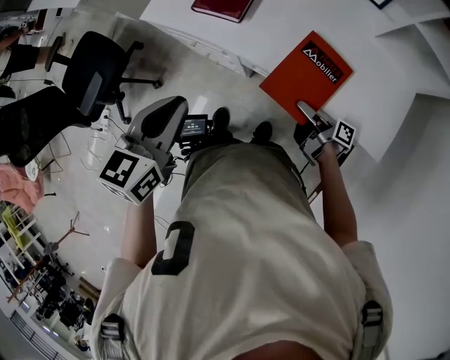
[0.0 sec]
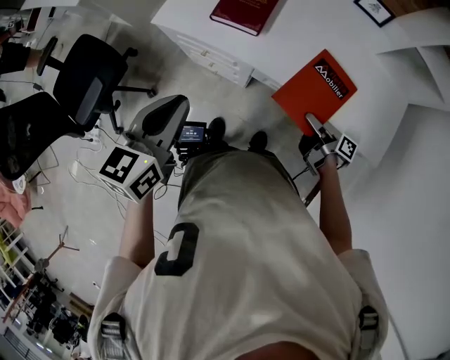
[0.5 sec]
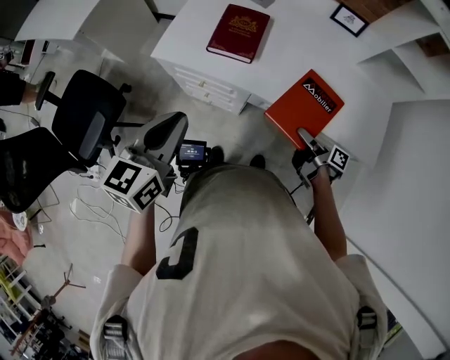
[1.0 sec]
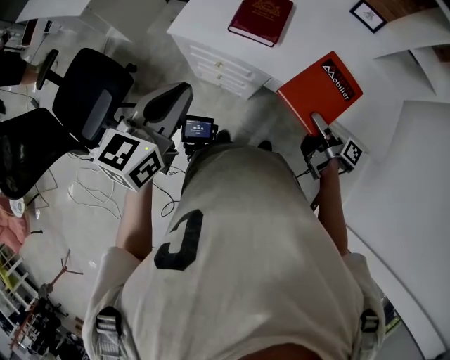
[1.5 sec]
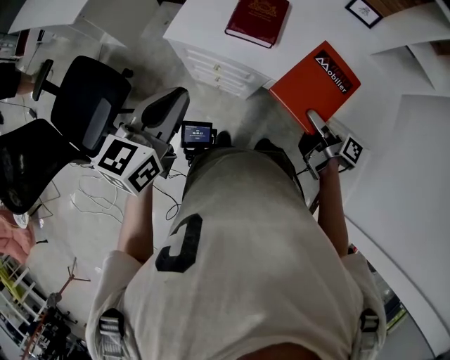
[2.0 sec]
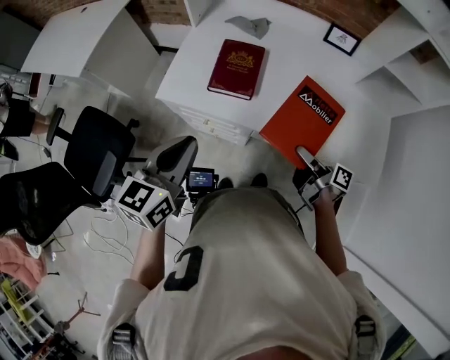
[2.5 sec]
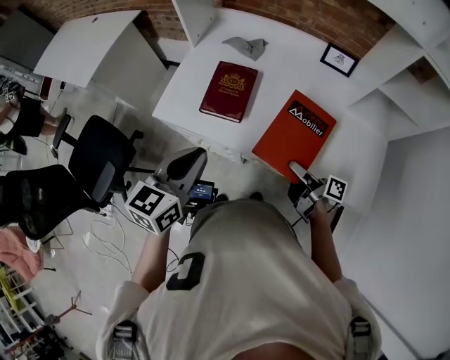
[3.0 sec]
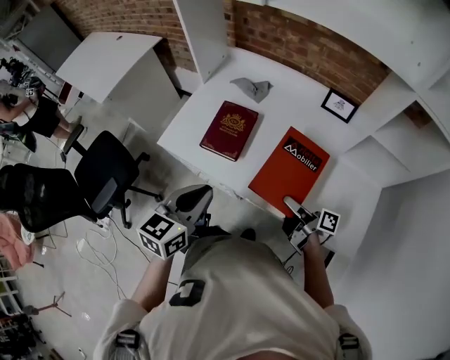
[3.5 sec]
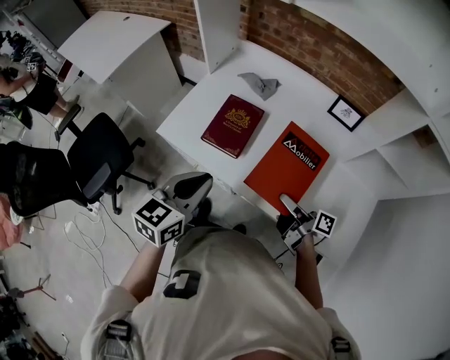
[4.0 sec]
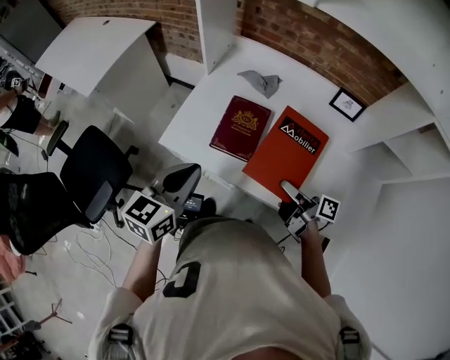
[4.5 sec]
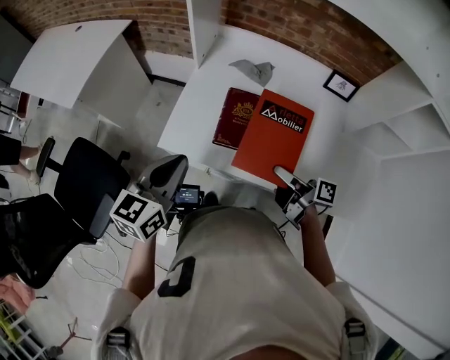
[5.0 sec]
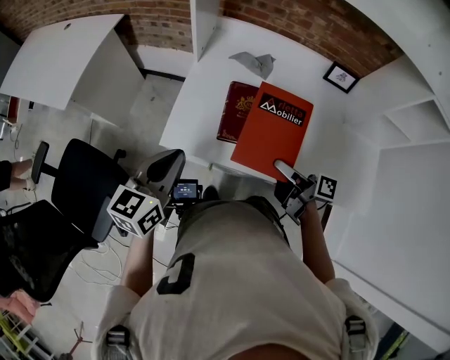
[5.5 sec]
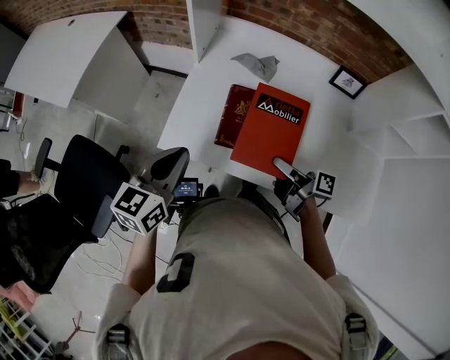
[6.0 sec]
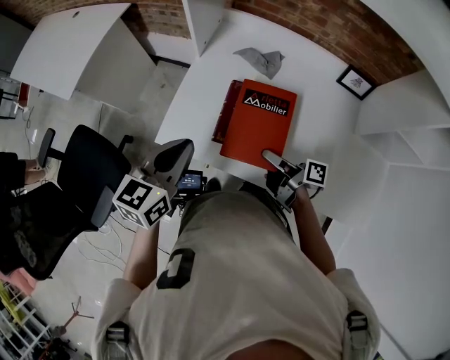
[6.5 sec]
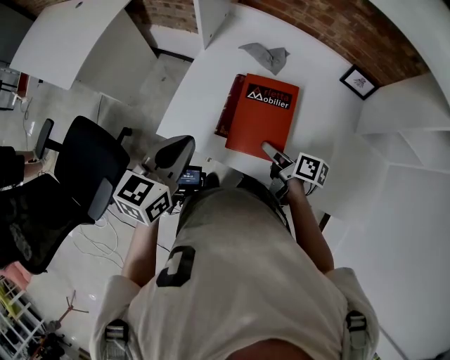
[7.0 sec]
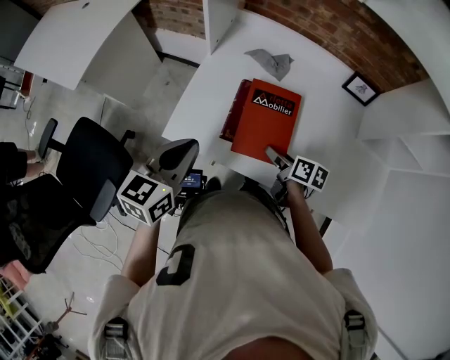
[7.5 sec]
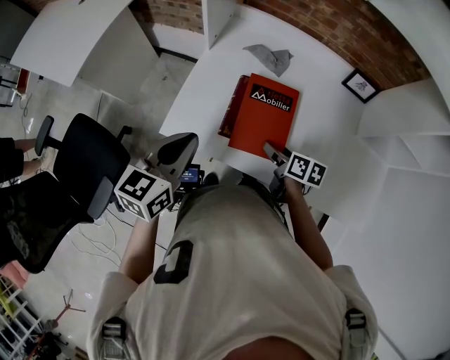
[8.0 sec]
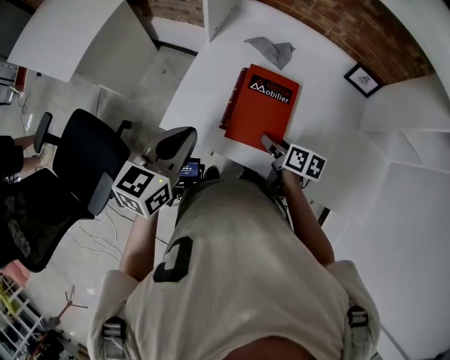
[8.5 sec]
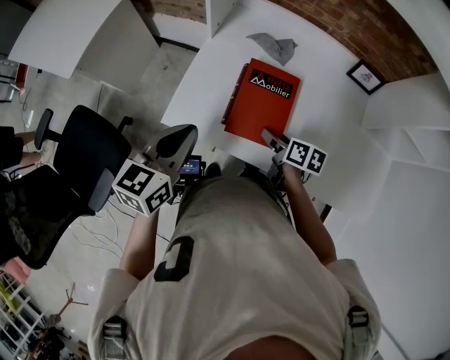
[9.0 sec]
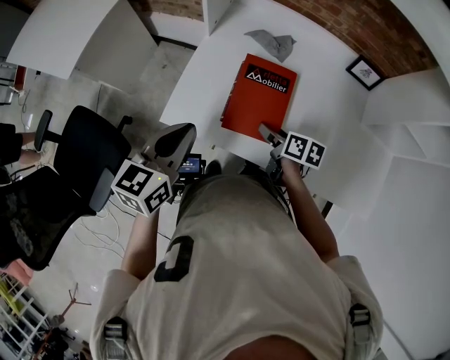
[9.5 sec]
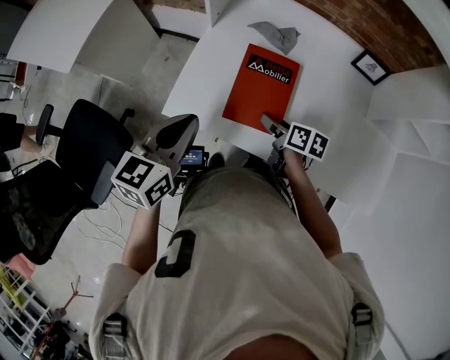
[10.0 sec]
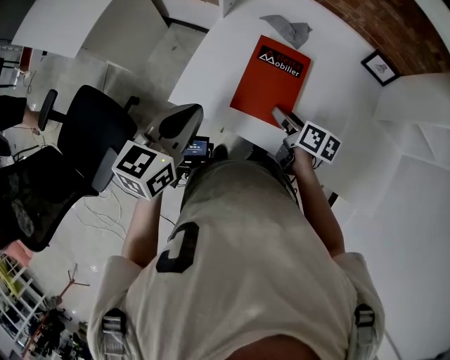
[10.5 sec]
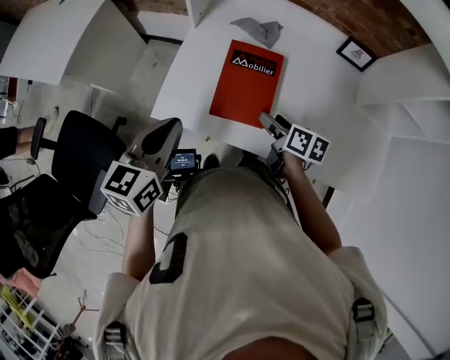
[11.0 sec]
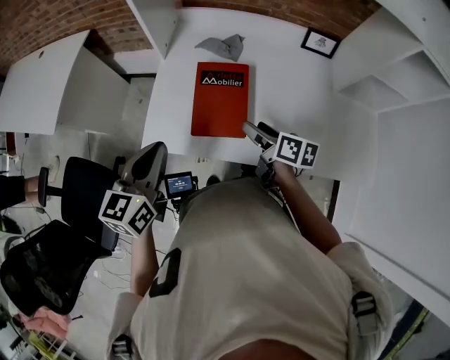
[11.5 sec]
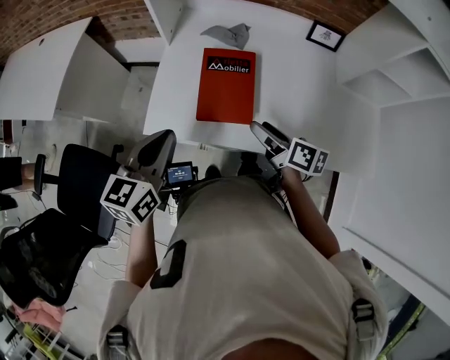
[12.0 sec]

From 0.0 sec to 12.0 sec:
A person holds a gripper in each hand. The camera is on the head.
From 0.0 sec to 2.0 sec: The left gripper moves to the left, approximately 15 cm; the right gripper travels upward and to the left by approximately 10 cm.
From 2.0 sec to 4.0 sec: The left gripper is displaced to the right by some 20 cm. The right gripper shifts about 15 cm forward and to the right.
From 4.0 sec to 6.0 sec: Both grippers move to the left and forward, some 20 cm.
From 6.0 sec to 8.0 sec: The right gripper goes about 5 cm downward, tips its fingers downward by some 30 degrees, and opens up.
From 8.0 sec to 10.0 sec: The grippers make only small movements.
From 10.0 sec to 12.0 sec: The right gripper heads upward and backward, covering about 10 cm, and turns by roughly 20 degrees.

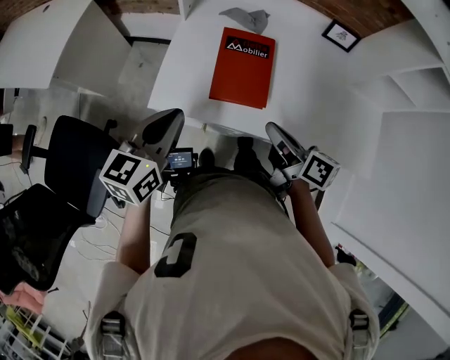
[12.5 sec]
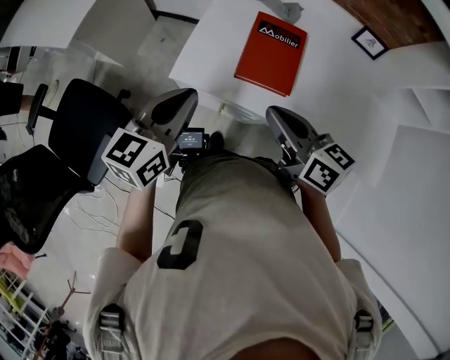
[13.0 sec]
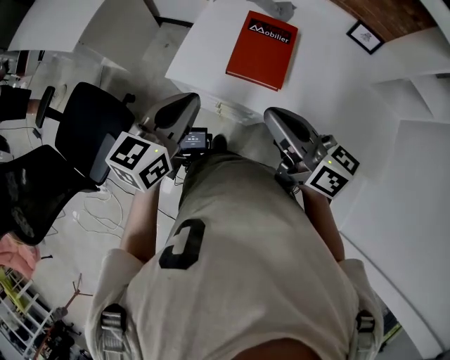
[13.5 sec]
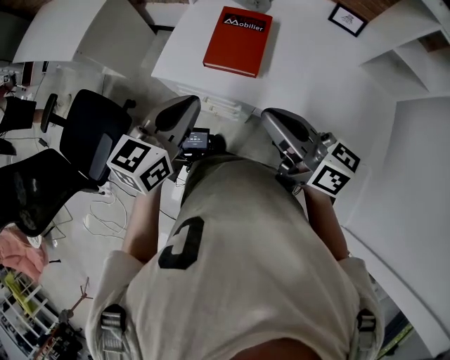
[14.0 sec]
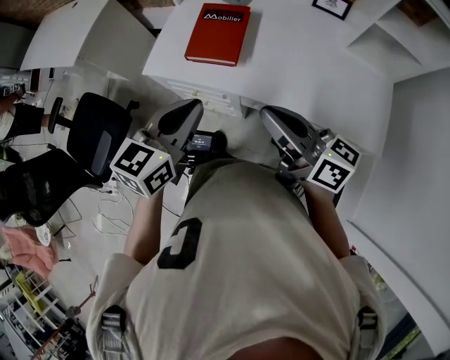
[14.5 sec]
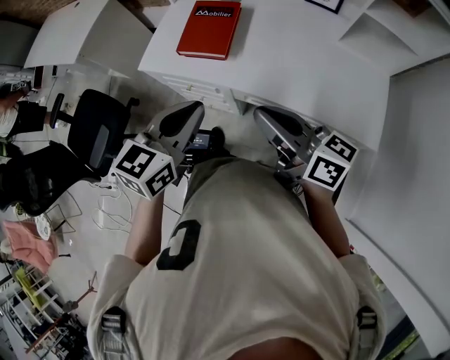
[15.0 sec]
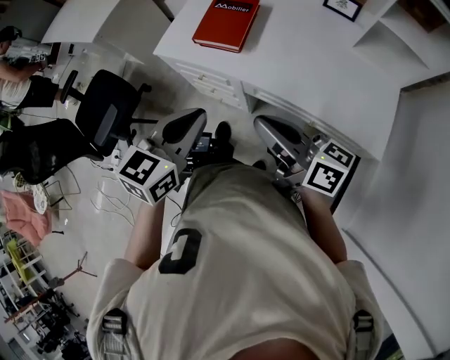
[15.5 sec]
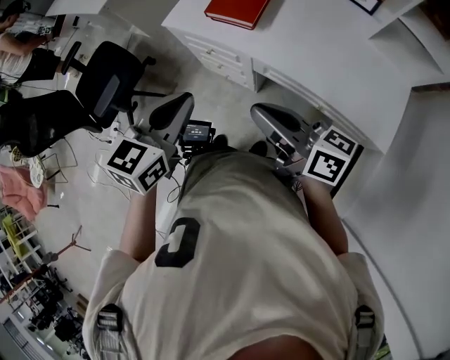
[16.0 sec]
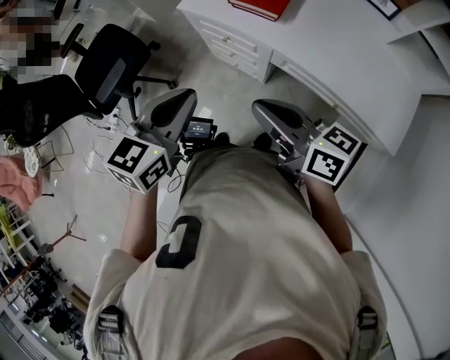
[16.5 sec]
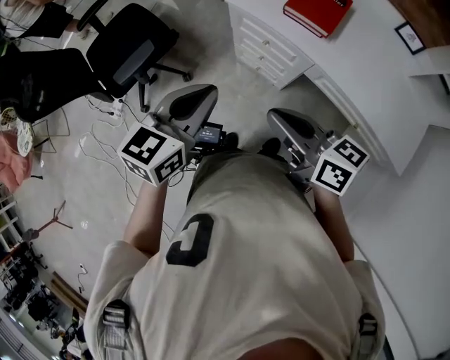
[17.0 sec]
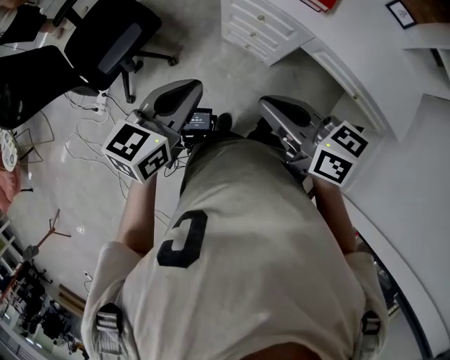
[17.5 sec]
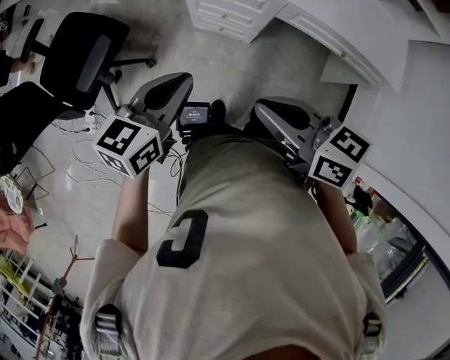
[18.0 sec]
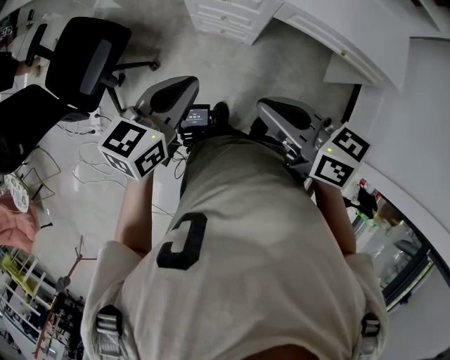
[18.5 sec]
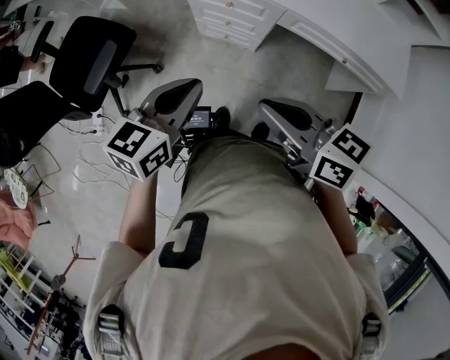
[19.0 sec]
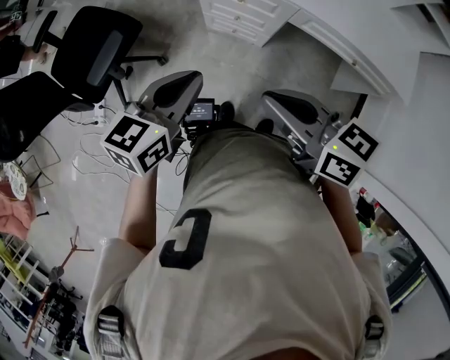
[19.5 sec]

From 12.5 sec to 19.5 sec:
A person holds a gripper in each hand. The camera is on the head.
From 12.5 sec to 14.5 sec: The right gripper shifts about 20 cm backward, upward and to the right, and turns by some 30 degrees. The left gripper travels backward and to the right by about 25 cm.
From 14.5 sec to 16.0 sec: The two grippers go about 10 cm backward.
From 16.0 sec to 17.5 sec: The grippers both shift to the left by some 25 cm. The right gripper rotates roughly 20 degrees.

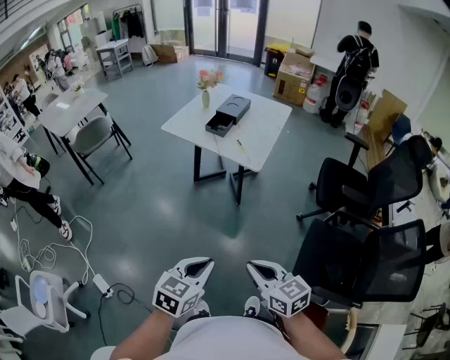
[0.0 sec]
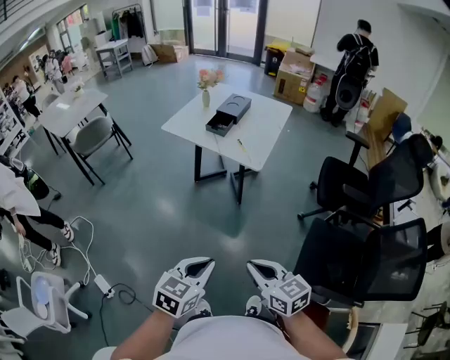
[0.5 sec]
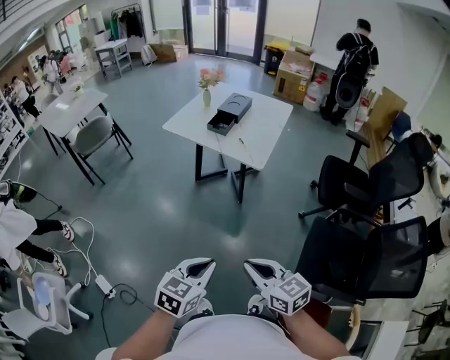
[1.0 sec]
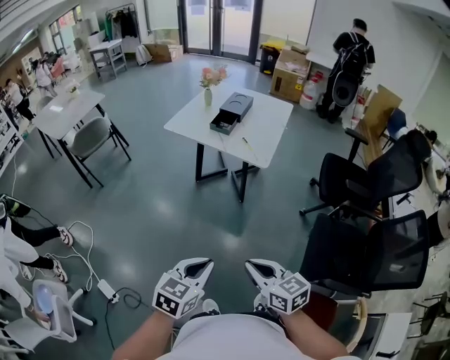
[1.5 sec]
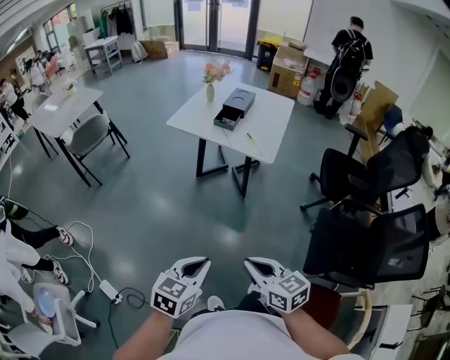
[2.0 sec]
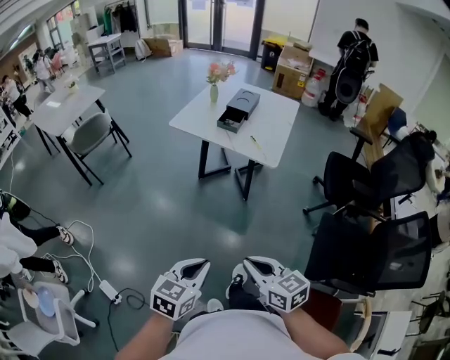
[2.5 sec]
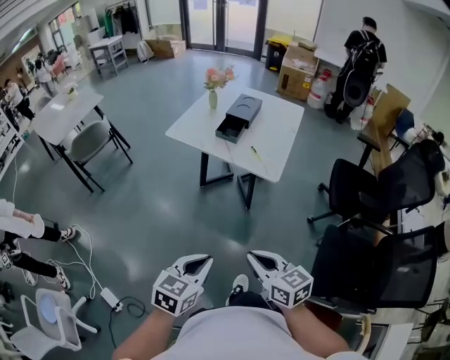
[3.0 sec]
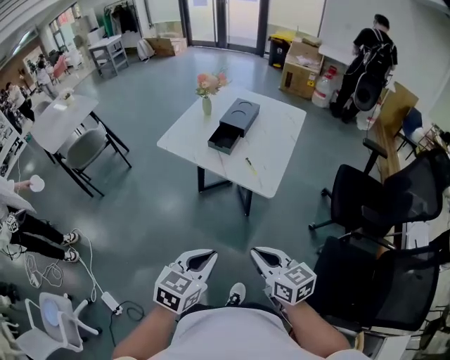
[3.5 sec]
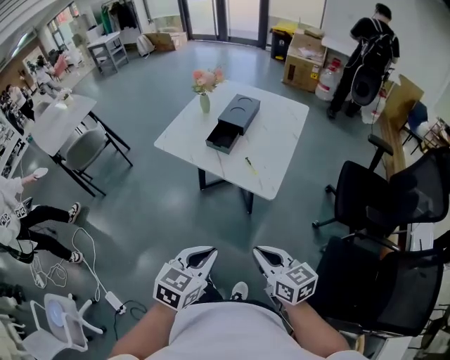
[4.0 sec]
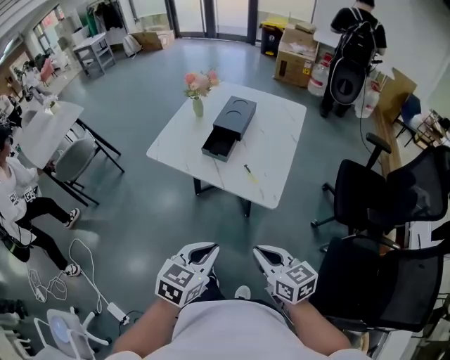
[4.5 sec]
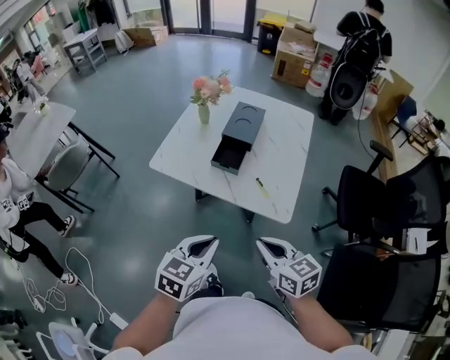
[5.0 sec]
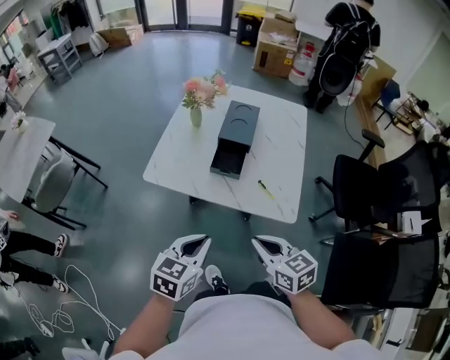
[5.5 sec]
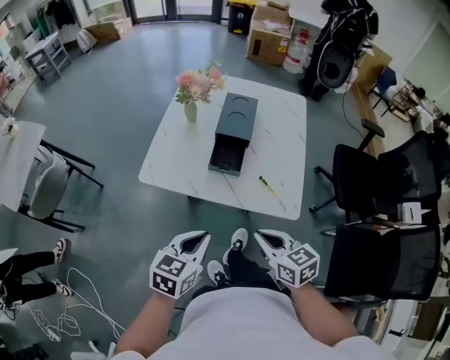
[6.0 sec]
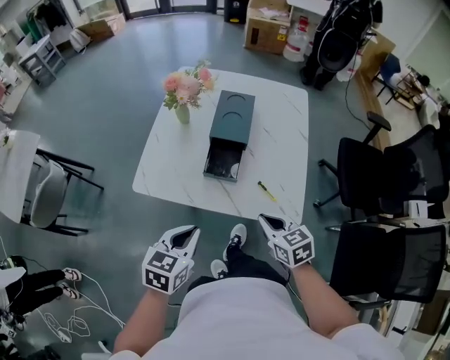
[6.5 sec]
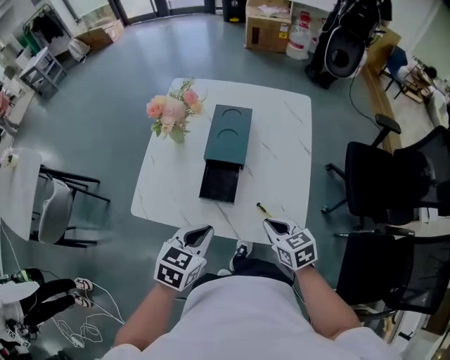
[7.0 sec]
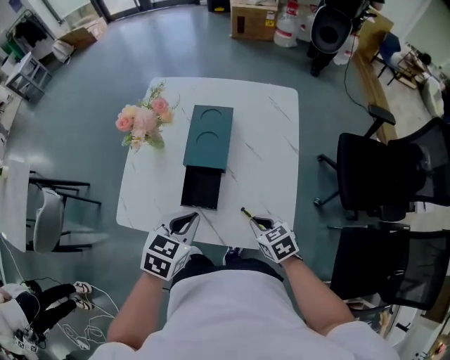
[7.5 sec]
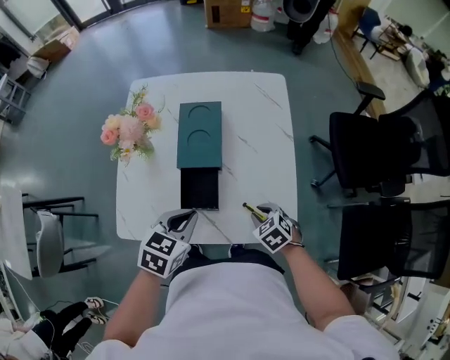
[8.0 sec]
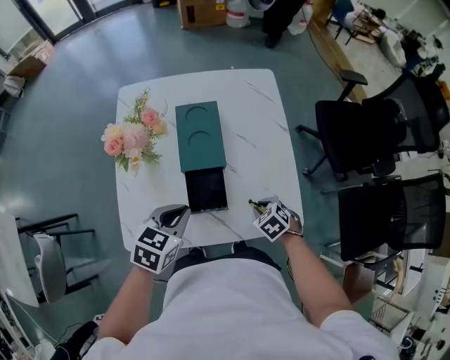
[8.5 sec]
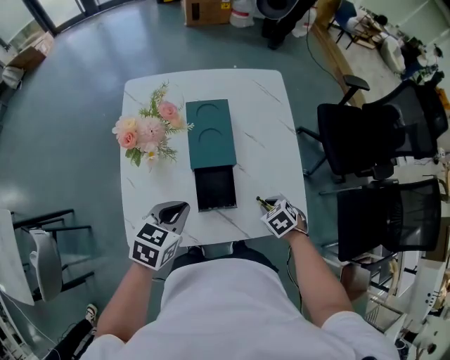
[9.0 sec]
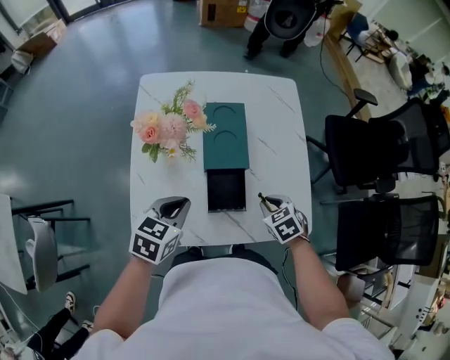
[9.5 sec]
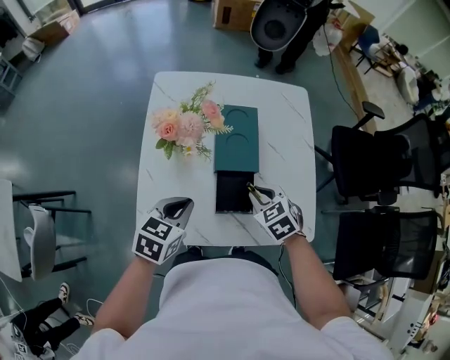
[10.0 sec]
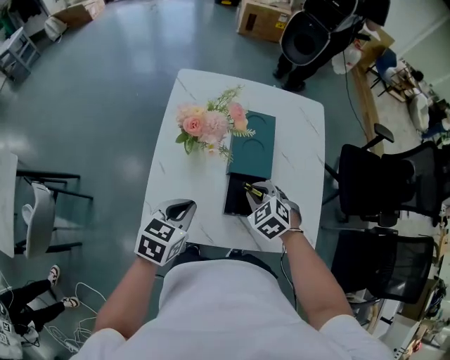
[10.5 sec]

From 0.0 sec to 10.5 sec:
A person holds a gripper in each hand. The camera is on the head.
From 0.0 sec to 2.0 sec: The grippers both shift to the left by approximately 15 cm.
From 2.0 sec to 4.0 sec: The grippers both shift forward and to the right by about 30 cm.
From 4.0 sec to 6.5 sec: The right gripper goes about 30 cm forward, and turns by some 20 degrees. Meanwhile the left gripper moves forward and to the left, about 40 cm.
From 6.5 sec to 8.5 sec: The left gripper travels forward by about 20 cm, and swivels about 30 degrees. The right gripper heads downward and forward, covering some 20 cm, and tilts its fingers some 30 degrees downward.
From 8.5 sec to 10.5 sec: The left gripper moves approximately 10 cm. Meanwhile the right gripper ends up roughly 20 cm from where it was, and turns by some 30 degrees.
